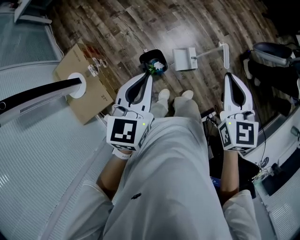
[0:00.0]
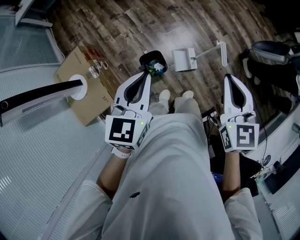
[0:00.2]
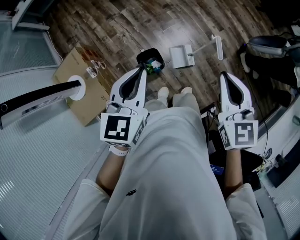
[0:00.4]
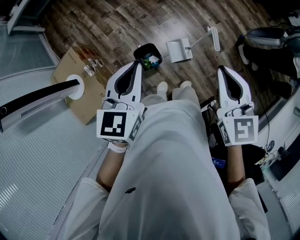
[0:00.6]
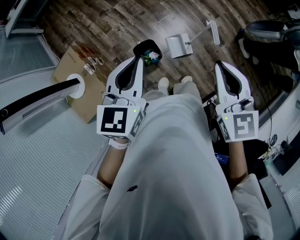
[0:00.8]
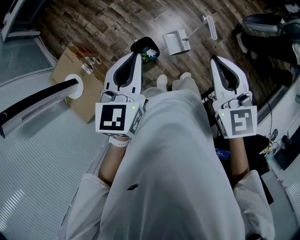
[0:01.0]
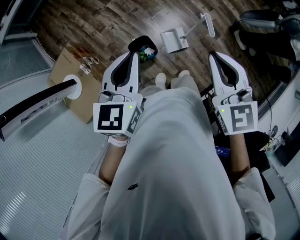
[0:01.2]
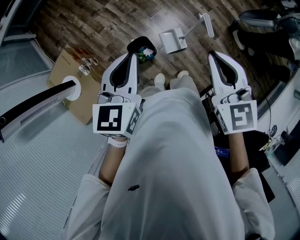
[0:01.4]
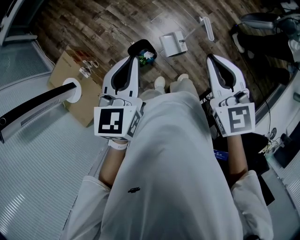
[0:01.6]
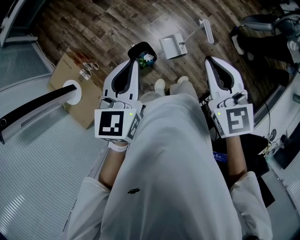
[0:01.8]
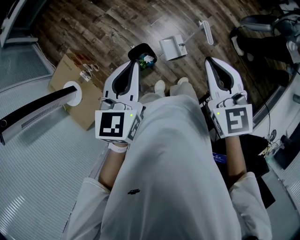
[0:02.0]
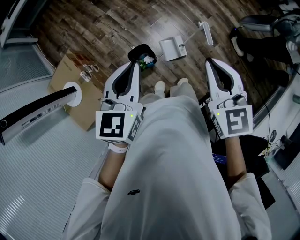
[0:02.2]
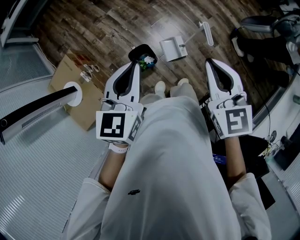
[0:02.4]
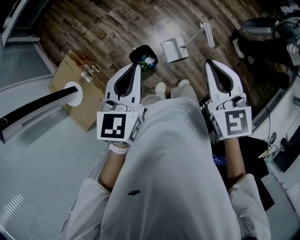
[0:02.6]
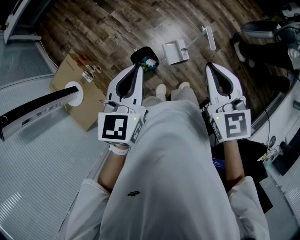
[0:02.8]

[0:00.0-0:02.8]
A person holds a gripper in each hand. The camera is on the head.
0:00.0 to 0:01.4: The right gripper is displaced backward by some 5 cm.
0:01.4 to 0:02.8: The two grippers keep their place.

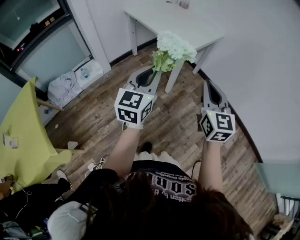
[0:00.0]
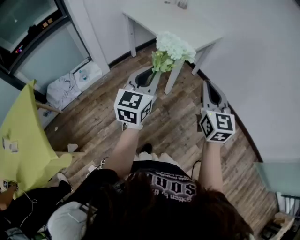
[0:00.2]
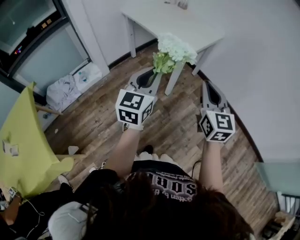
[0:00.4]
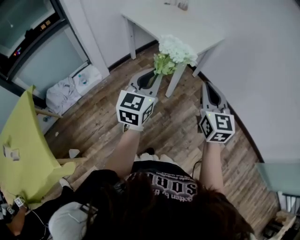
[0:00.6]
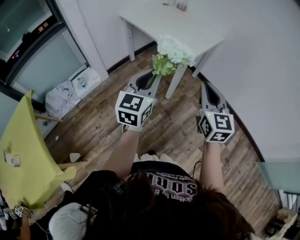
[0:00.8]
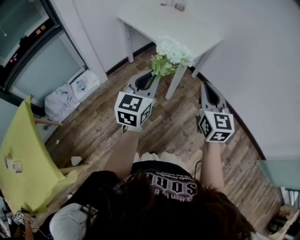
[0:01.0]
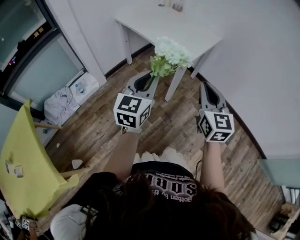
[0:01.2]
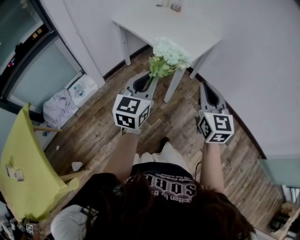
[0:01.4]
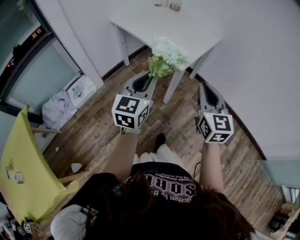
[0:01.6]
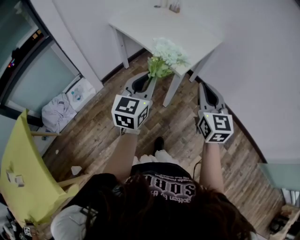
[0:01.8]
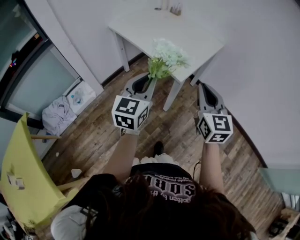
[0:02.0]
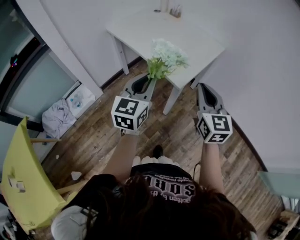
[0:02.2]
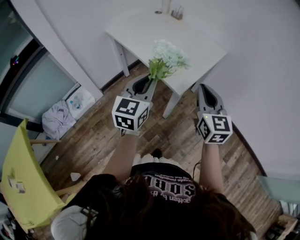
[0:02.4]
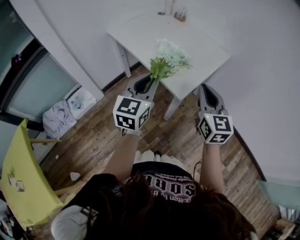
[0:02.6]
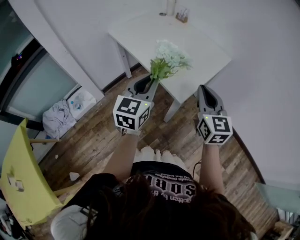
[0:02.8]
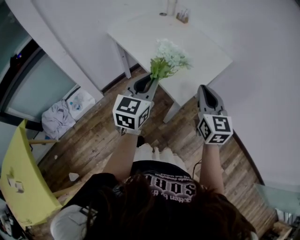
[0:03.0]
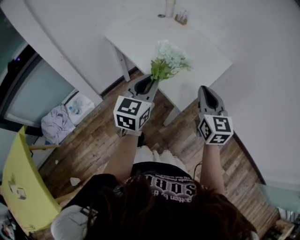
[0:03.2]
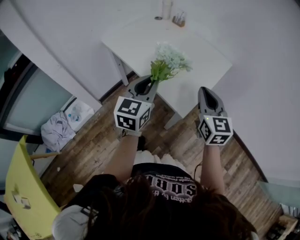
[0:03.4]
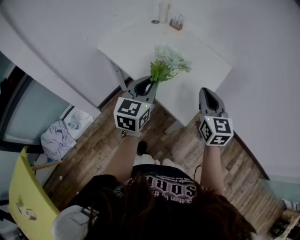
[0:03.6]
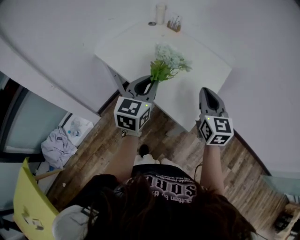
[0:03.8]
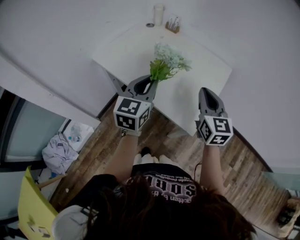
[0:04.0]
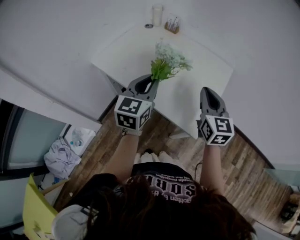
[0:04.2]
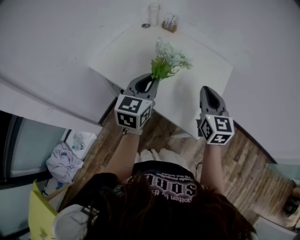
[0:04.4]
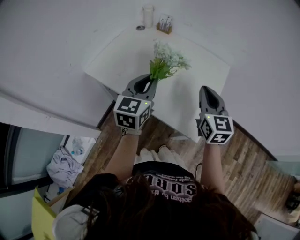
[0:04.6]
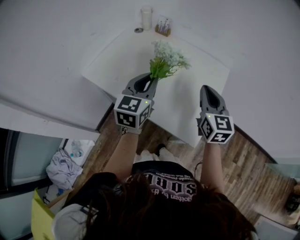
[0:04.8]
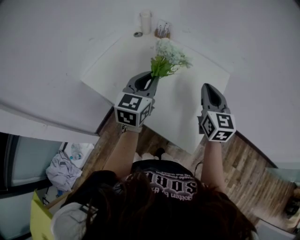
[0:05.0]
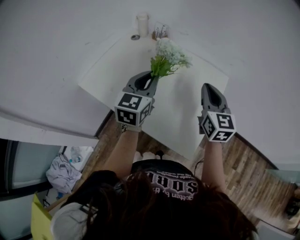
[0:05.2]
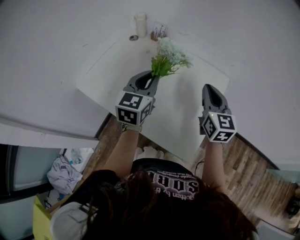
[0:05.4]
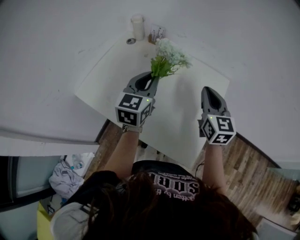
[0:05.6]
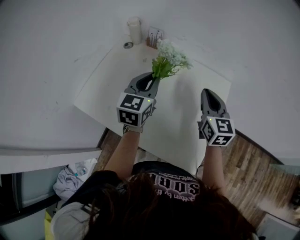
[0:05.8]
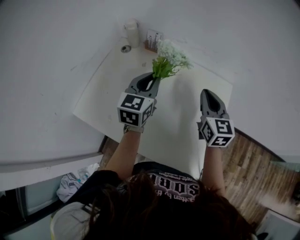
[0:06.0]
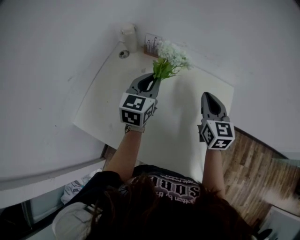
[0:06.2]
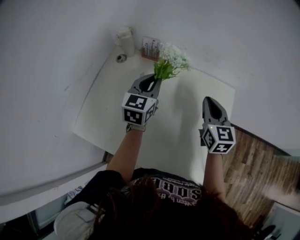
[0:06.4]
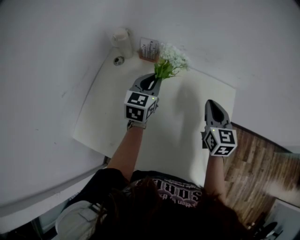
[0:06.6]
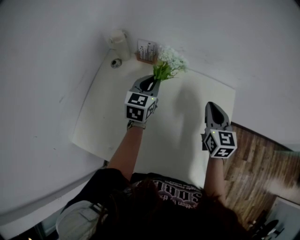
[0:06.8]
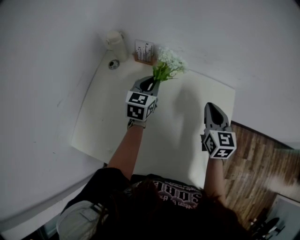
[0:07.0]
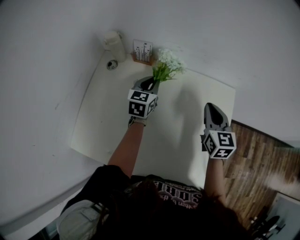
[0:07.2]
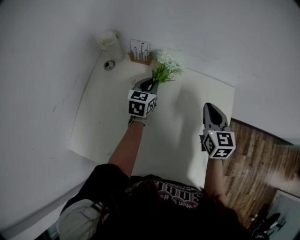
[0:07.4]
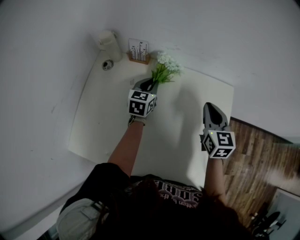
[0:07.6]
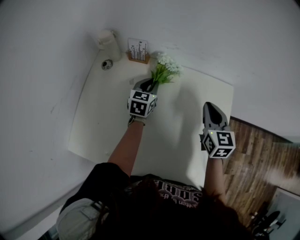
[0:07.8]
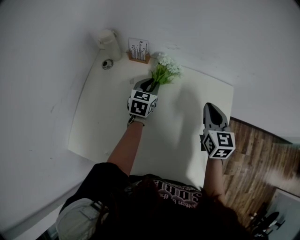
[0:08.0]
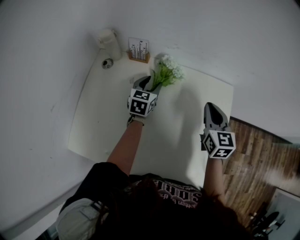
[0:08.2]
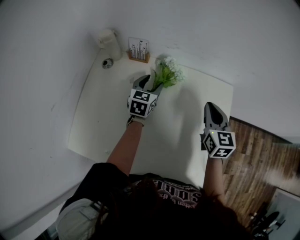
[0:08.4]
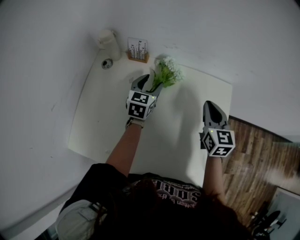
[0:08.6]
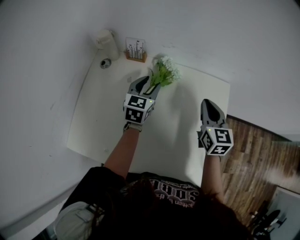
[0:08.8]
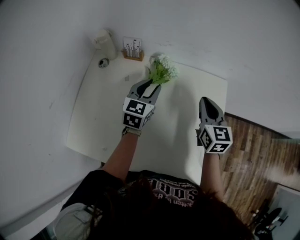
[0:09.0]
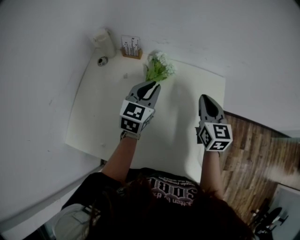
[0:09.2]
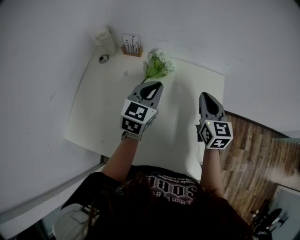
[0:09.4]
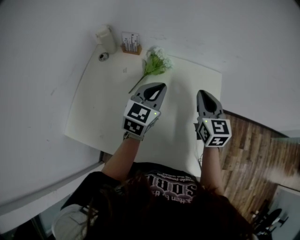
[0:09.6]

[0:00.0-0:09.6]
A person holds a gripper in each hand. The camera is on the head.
0:00.0 to 0:01.6: Both grippers travel together forward, roughly 15 cm.
0:01.6 to 0:03.2: The two grippers go roughly 25 cm forward.
0:03.2 to 0:04.8: Both grippers travel together forward, about 20 cm.
0:04.8 to 0:06.4: Both grippers travel together forward, roughly 25 cm.
0:06.4 to 0:08.0: The right gripper shifts by approximately 5 cm. Meanwhile the left gripper heads downward and forward, covering about 15 cm.
0:08.0 to 0:09.6: The right gripper changes place by about 5 cm. Meanwhile the left gripper heads upward, backward and to the right, covering some 20 cm, and opens and closes again.

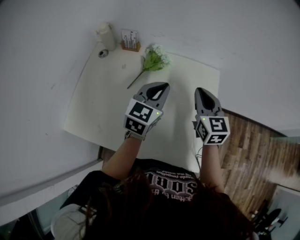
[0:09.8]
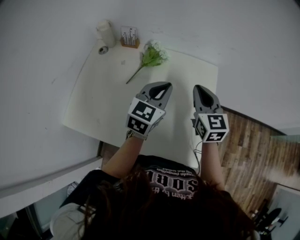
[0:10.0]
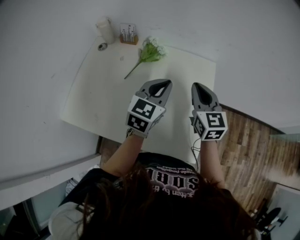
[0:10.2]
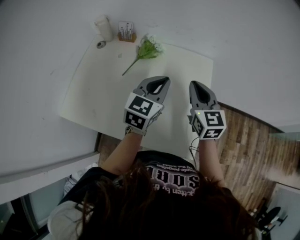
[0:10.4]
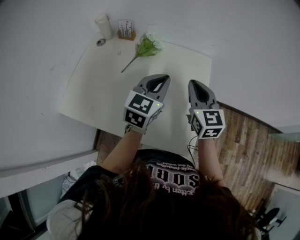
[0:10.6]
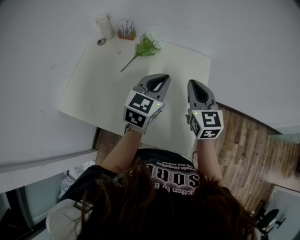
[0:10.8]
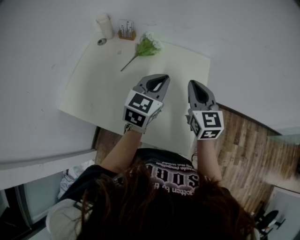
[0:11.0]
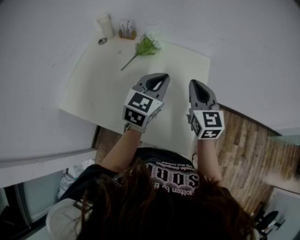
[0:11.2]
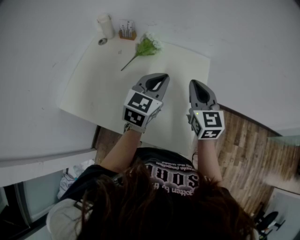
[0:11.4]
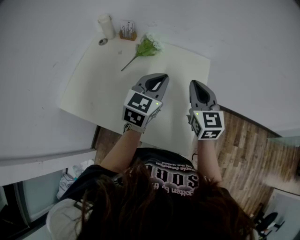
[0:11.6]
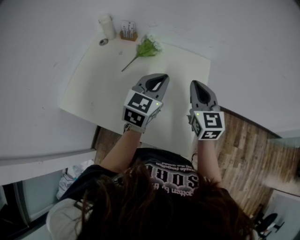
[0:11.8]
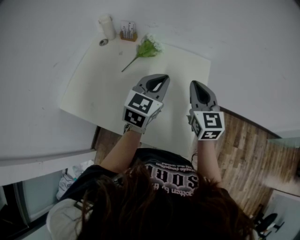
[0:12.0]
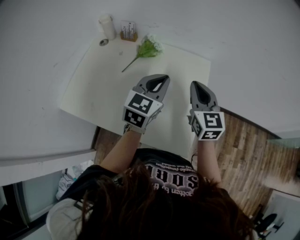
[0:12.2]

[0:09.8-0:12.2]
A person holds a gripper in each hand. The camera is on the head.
0:09.8 to 0:11.0: The right gripper travels backward by some 5 cm, while the left gripper heads backward and to the right, covering approximately 10 cm.
0:11.0 to 0:12.2: Both grippers stay put.

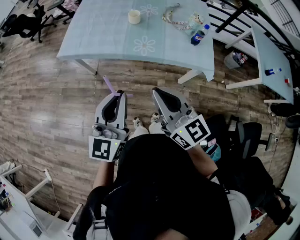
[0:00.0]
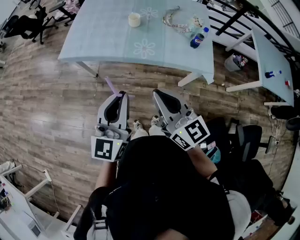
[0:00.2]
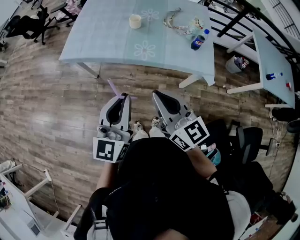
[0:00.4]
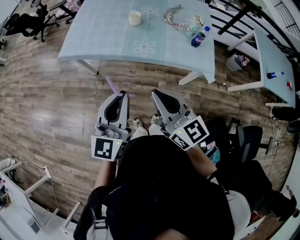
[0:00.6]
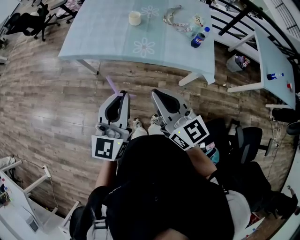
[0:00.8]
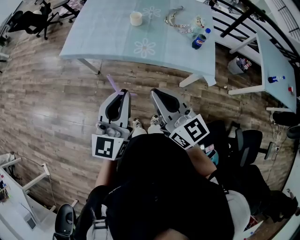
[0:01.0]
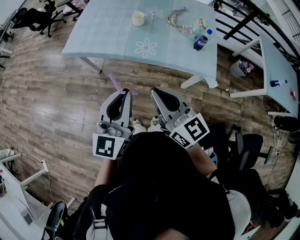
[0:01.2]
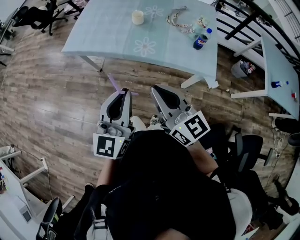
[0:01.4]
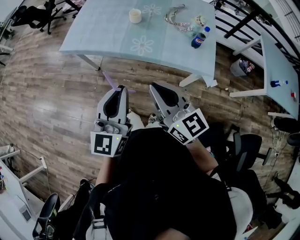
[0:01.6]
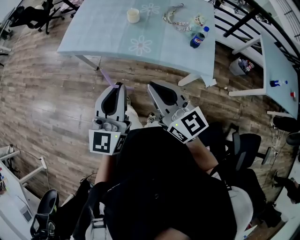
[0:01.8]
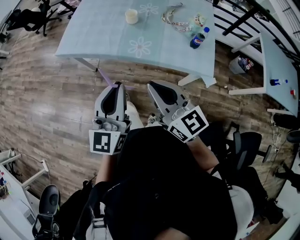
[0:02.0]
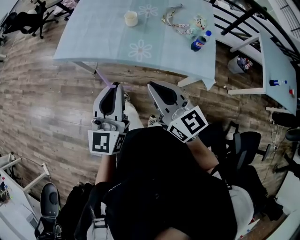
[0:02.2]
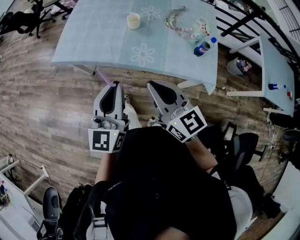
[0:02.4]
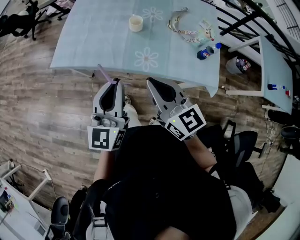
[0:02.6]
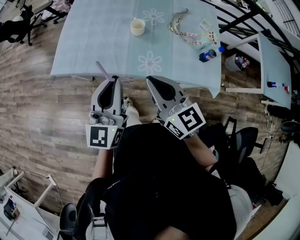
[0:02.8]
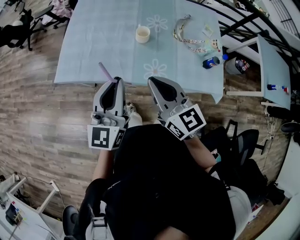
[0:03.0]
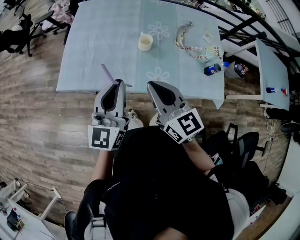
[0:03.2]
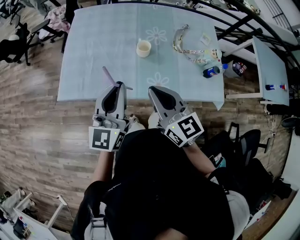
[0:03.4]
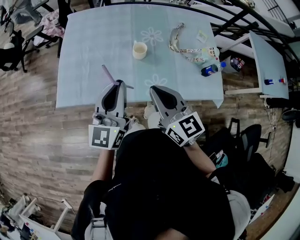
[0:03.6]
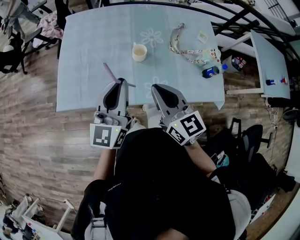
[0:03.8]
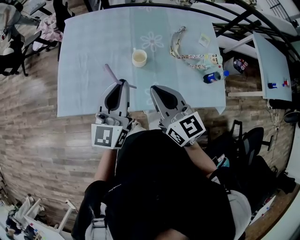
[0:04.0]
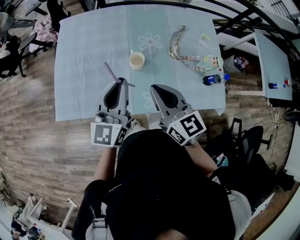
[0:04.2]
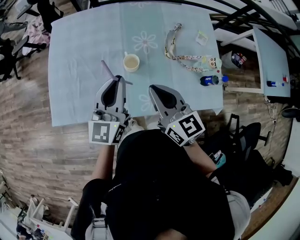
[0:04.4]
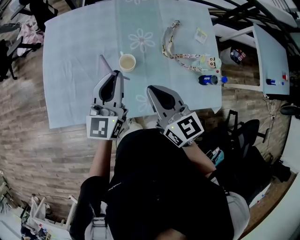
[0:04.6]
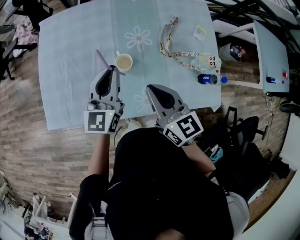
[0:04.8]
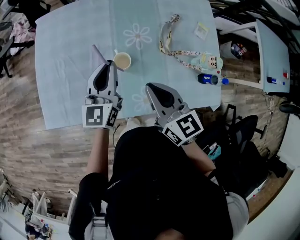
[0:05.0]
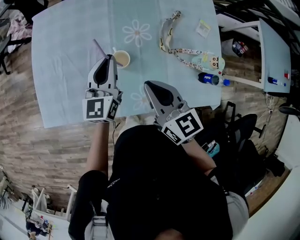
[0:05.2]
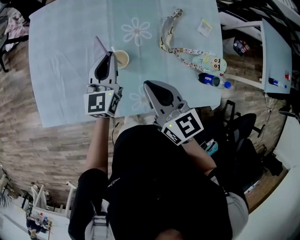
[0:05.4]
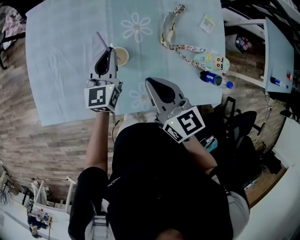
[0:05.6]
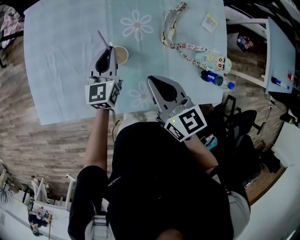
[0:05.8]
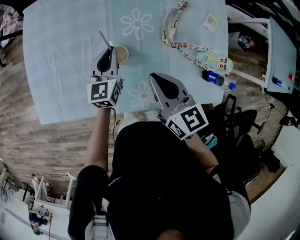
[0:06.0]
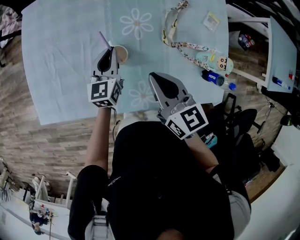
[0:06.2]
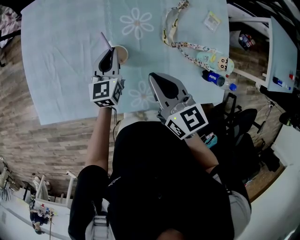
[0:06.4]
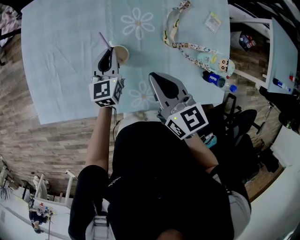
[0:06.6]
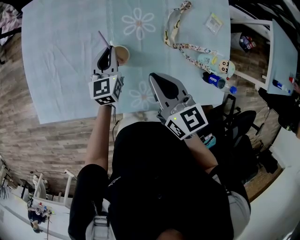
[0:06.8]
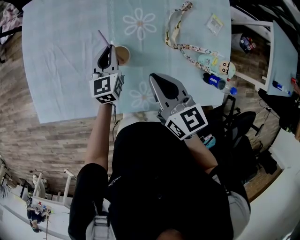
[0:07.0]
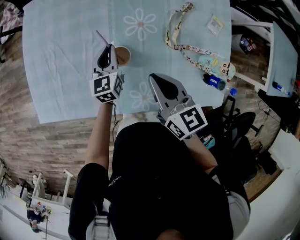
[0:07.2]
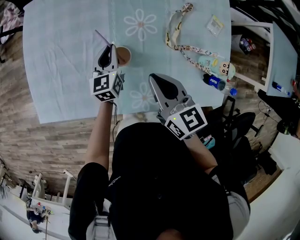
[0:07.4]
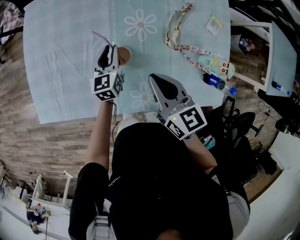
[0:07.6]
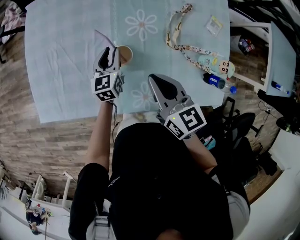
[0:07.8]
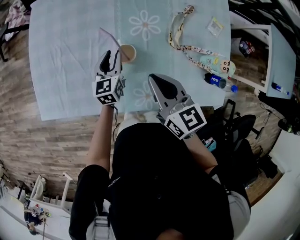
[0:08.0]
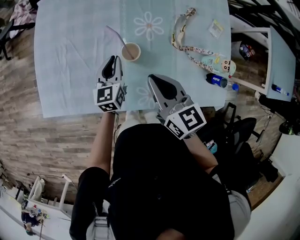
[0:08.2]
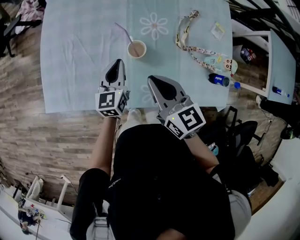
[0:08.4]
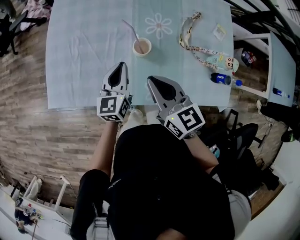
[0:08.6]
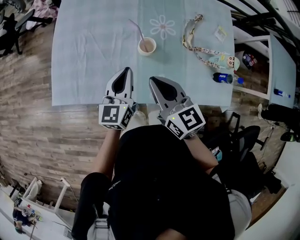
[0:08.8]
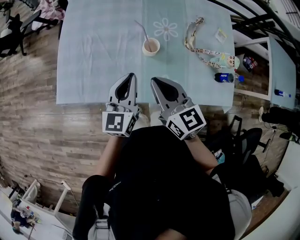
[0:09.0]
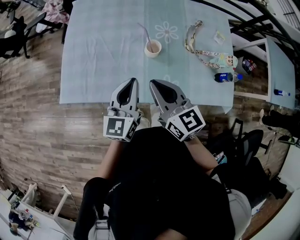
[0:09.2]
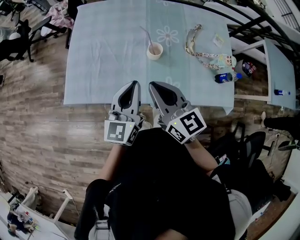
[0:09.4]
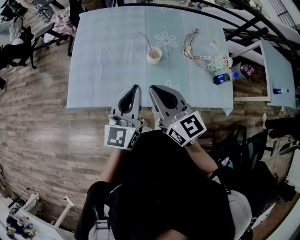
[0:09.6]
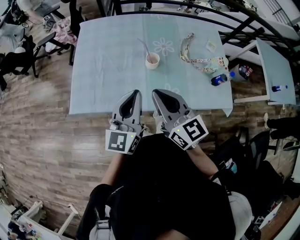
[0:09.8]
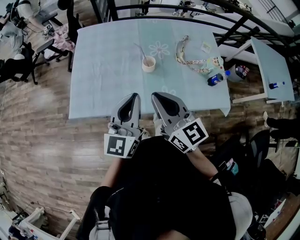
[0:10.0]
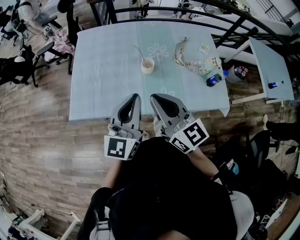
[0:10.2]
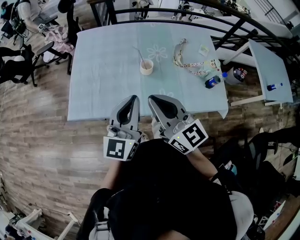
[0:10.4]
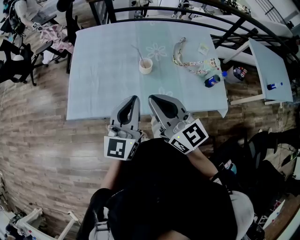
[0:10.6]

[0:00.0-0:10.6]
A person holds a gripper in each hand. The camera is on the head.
0:00.0 to 0:01.6: The two grippers go approximately 5 cm to the right.
0:01.6 to 0:03.0: Both grippers move forward, roughly 30 cm.
0:03.0 to 0:04.6: The two grippers go about 25 cm forward.
0:04.6 to 0:06.0: The right gripper moves downward and forward, approximately 10 cm. The left gripper moves downward and forward, about 20 cm.
0:06.0 to 0:07.6: The left gripper heads downward, covering roughly 5 cm.
0:07.6 to 0:09.0: The left gripper moves backward, upward and to the left, approximately 30 cm. The right gripper moves to the left, backward and upward, some 20 cm.
0:09.0 to 0:10.6: The grippers both shift upward and backward by approximately 15 cm.
